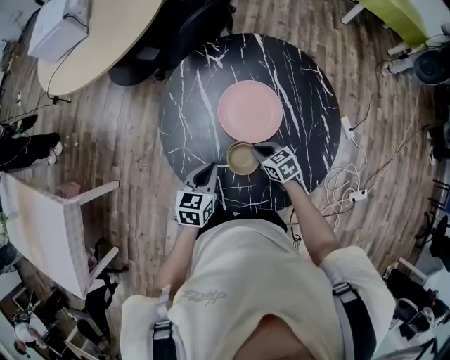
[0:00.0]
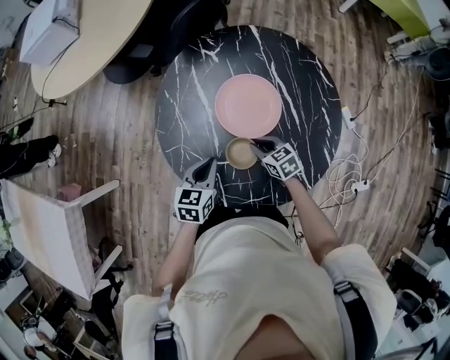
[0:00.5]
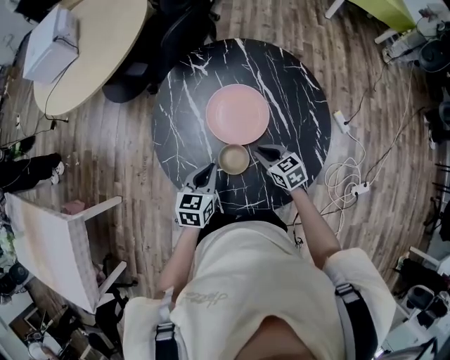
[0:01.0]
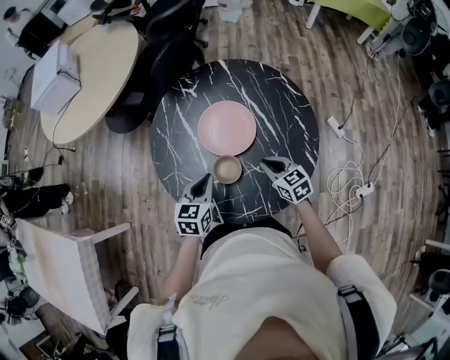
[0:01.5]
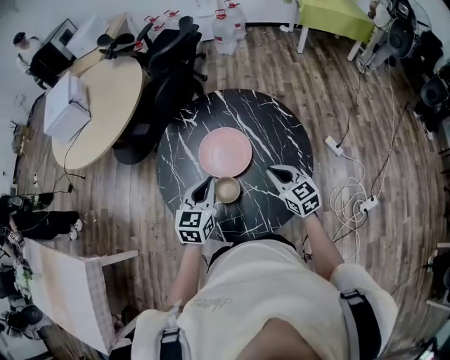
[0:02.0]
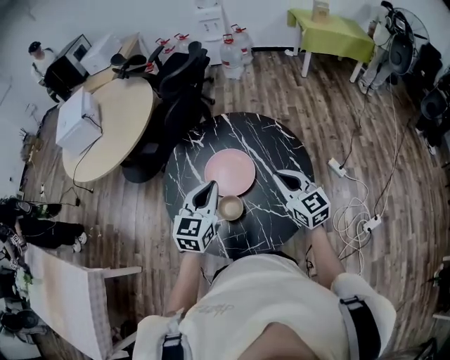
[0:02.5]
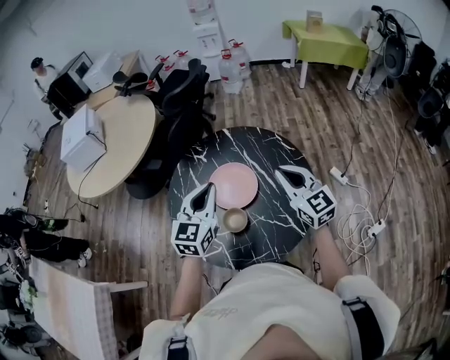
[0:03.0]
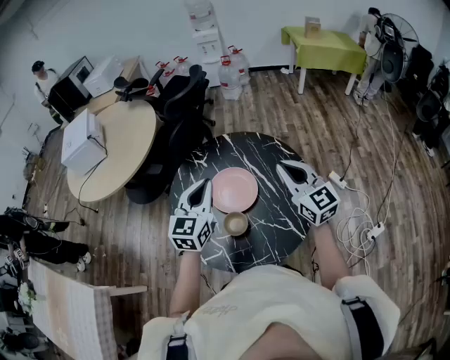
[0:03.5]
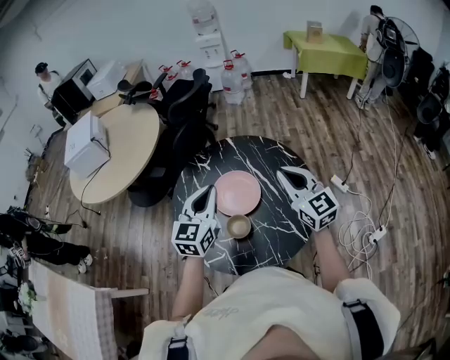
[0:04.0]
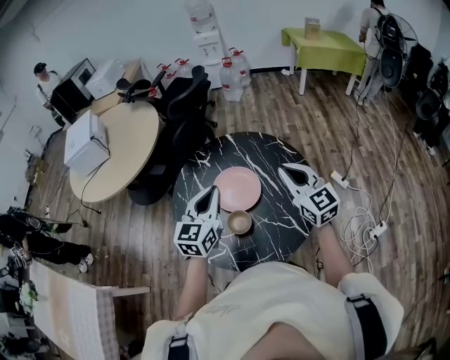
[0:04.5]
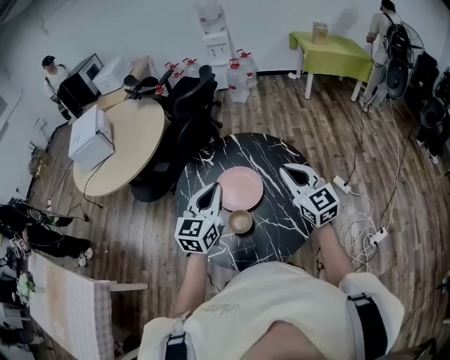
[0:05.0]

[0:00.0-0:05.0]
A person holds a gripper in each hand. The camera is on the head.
0:00.0 to 0:02.5: The two grippers go roughly 30 cm upward and to the right. The left gripper turns by some 30 degrees. The right gripper angles its fingers upward, by approximately 30 degrees.
0:02.5 to 0:05.0: The right gripper travels upward by some 10 cm; the left gripper changes place by about 5 cm.

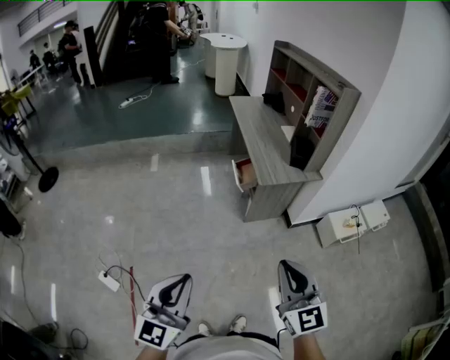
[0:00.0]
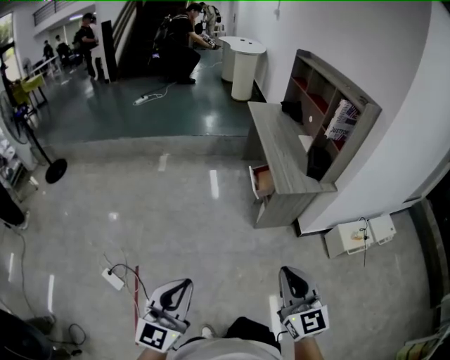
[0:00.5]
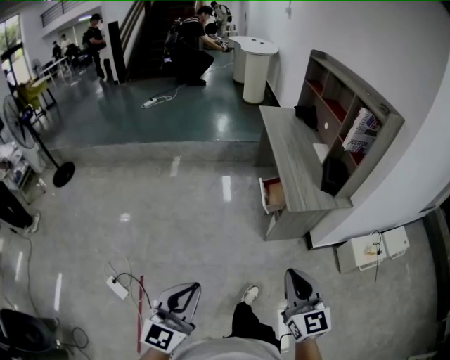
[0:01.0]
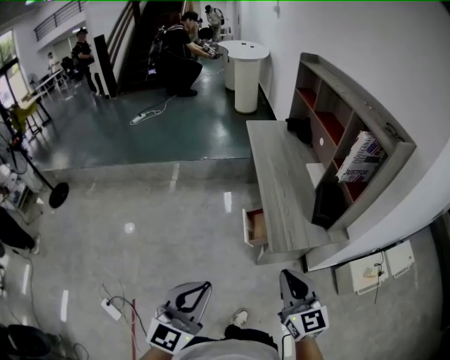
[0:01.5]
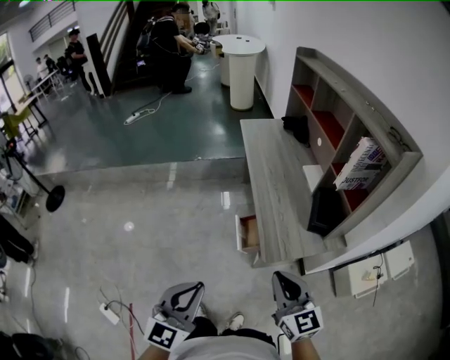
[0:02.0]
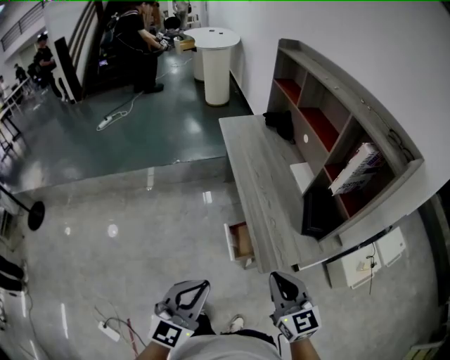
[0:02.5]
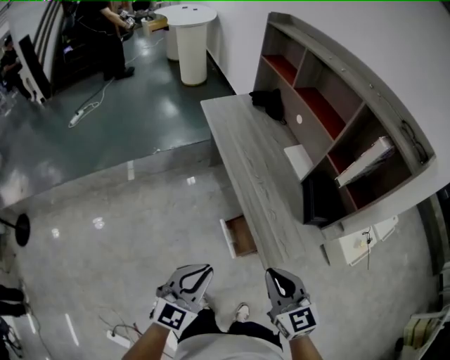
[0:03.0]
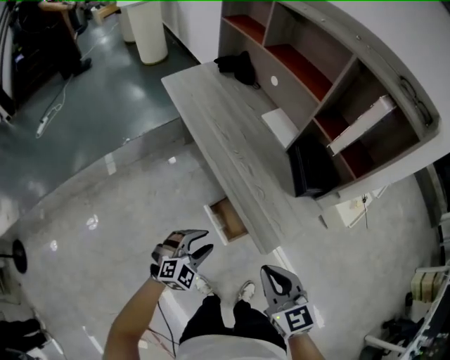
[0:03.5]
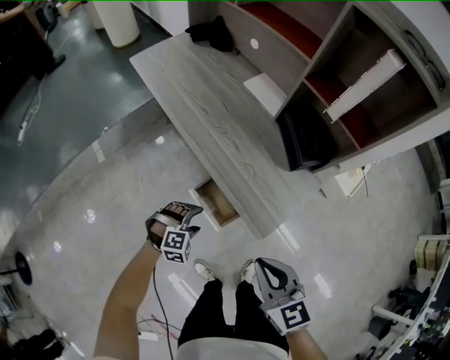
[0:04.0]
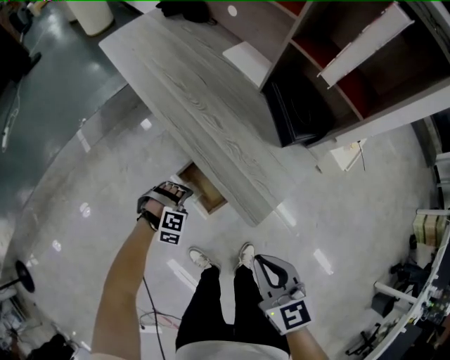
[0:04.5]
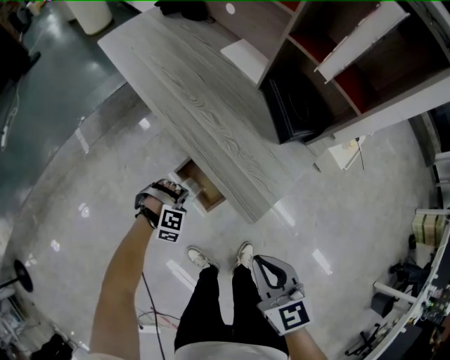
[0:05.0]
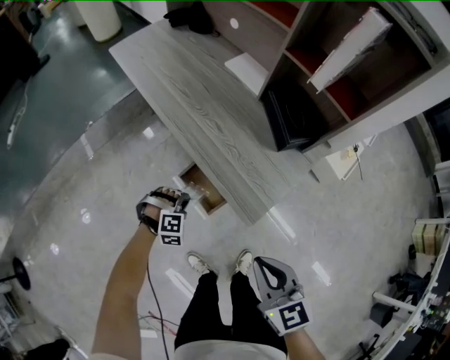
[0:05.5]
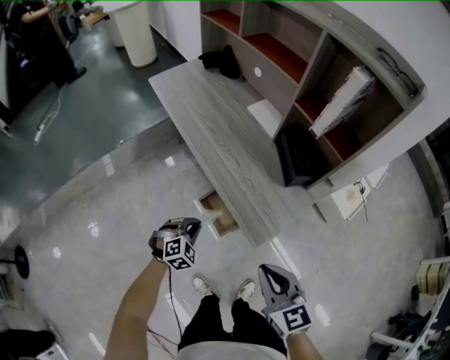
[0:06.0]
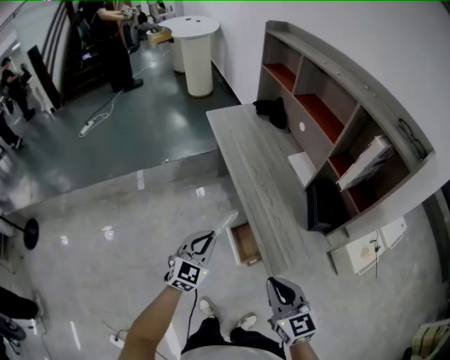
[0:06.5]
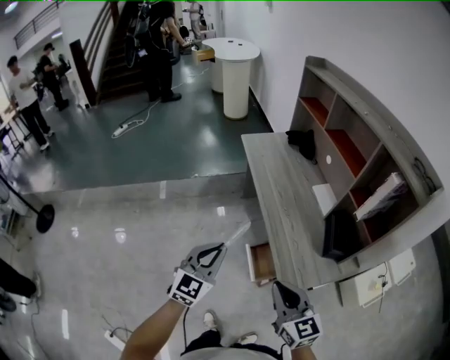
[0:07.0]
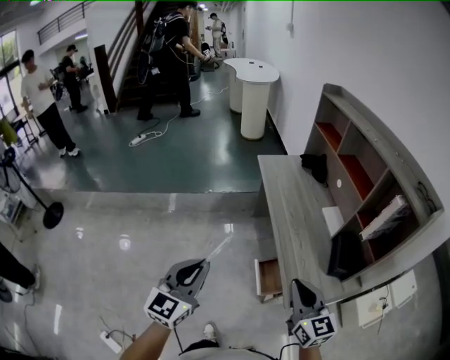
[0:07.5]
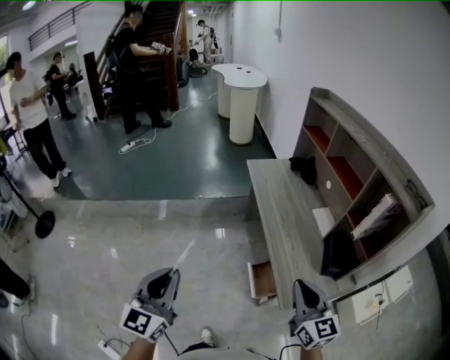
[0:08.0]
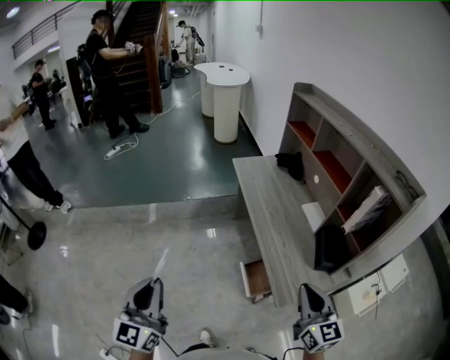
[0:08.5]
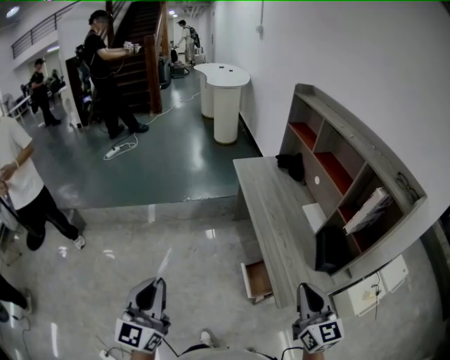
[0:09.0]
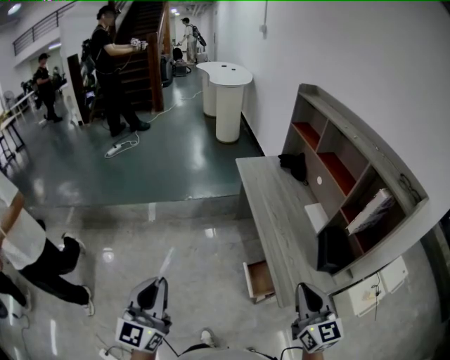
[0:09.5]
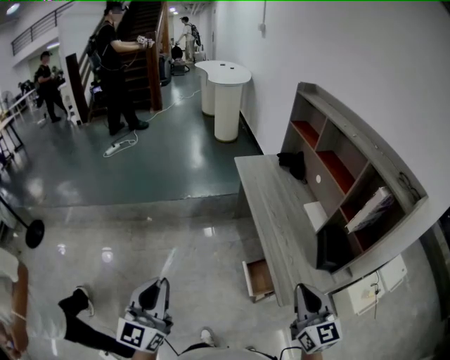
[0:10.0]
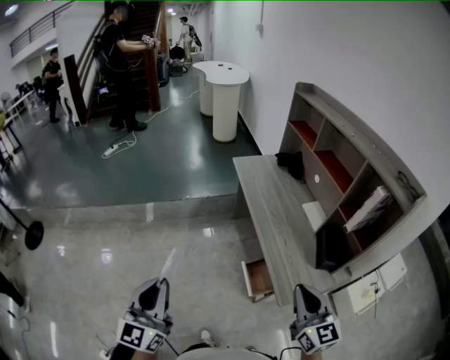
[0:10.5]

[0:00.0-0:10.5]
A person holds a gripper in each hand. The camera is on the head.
0:00.0 to 0:02.0: The two grippers travel together, forward, roughly 40 cm.
0:02.0 to 0:04.0: The right gripper travels downward by about 15 cm, and turns by some 30 degrees. Meanwhile the left gripper shifts roughly 40 cm downward, points its fingers approximately 50 degrees further downward, and opens.
0:04.0 to 0:06.5: The left gripper goes some 25 cm upward, points its fingers approximately 40 degrees further upward, and closes up; the right gripper travels upward by about 5 cm.
0:06.5 to 0:08.5: The left gripper heads to the left, upward and backward, covering some 35 cm, and changes its angle by roughly 40 degrees. The right gripper moves upward, some 10 cm.
0:08.5 to 0:10.5: The grippers move only a little.

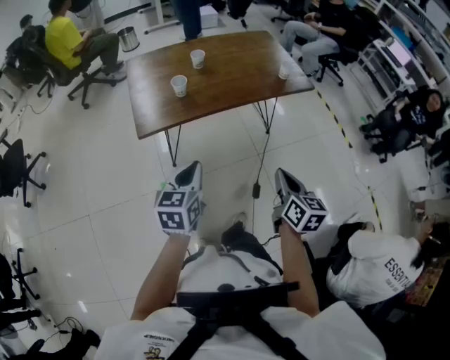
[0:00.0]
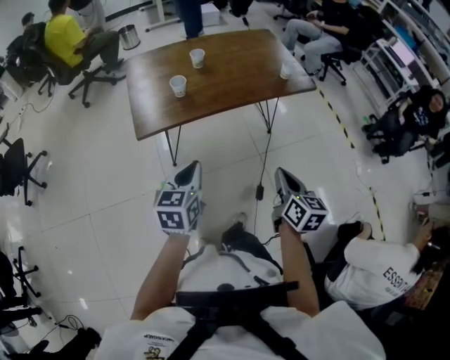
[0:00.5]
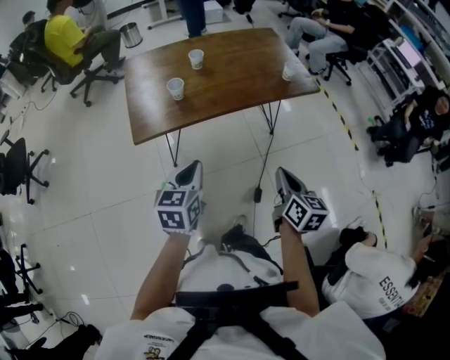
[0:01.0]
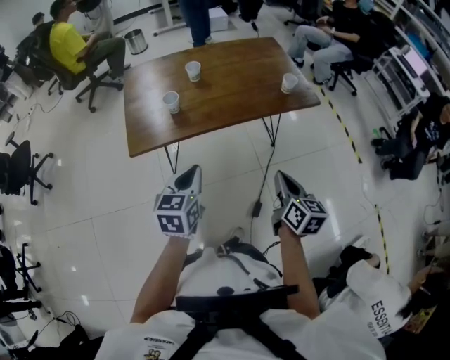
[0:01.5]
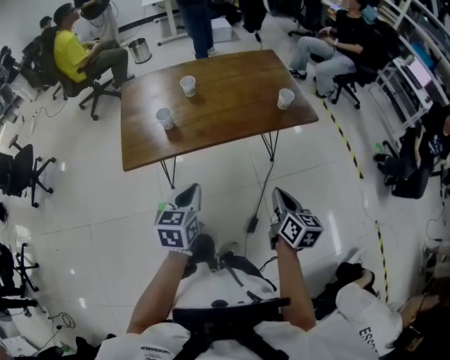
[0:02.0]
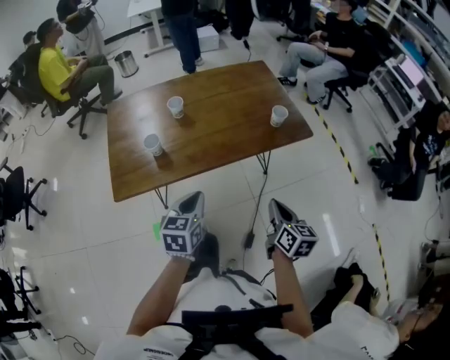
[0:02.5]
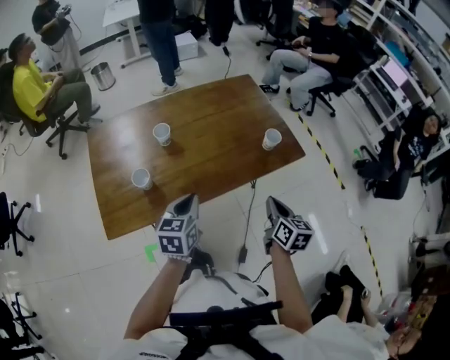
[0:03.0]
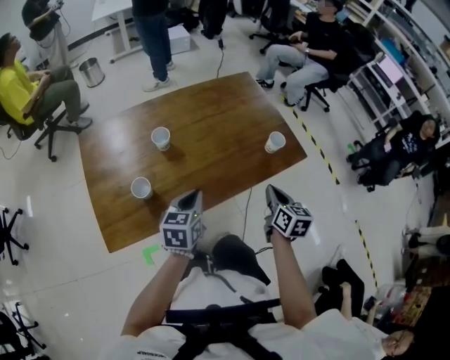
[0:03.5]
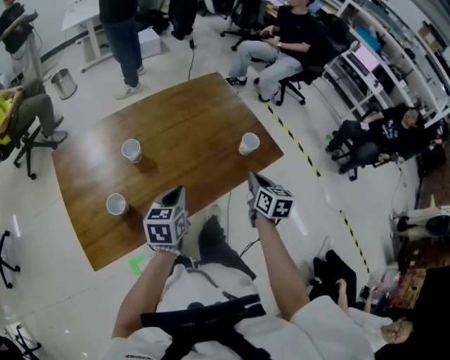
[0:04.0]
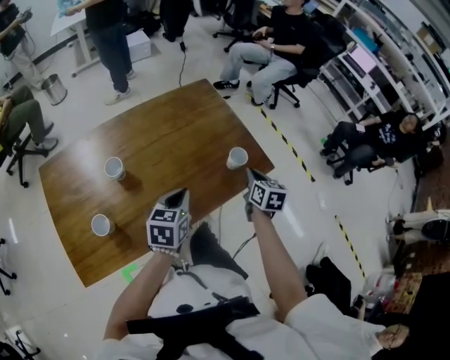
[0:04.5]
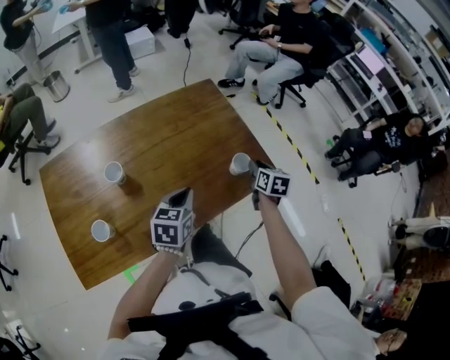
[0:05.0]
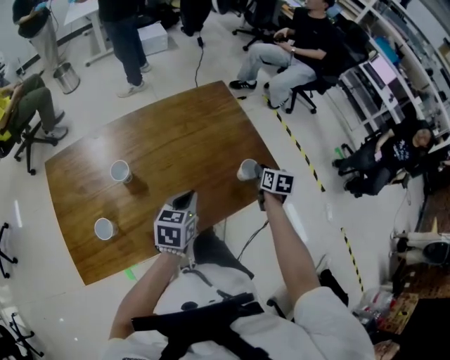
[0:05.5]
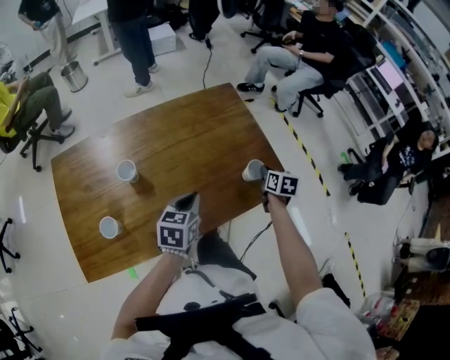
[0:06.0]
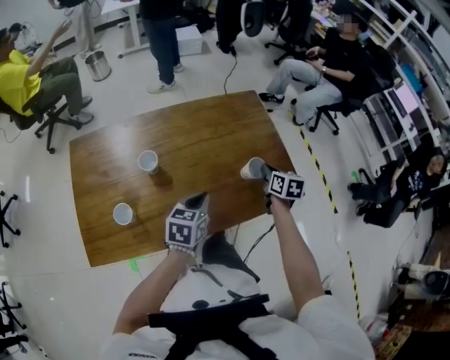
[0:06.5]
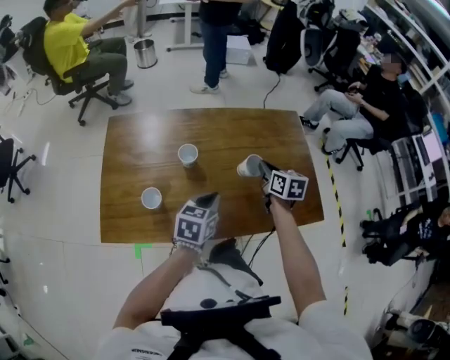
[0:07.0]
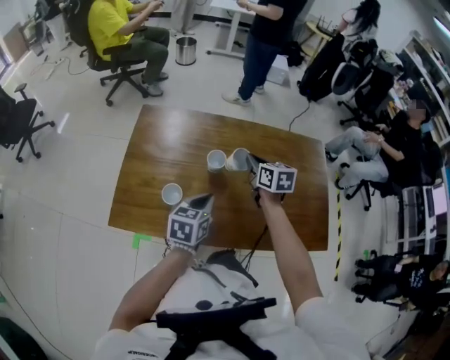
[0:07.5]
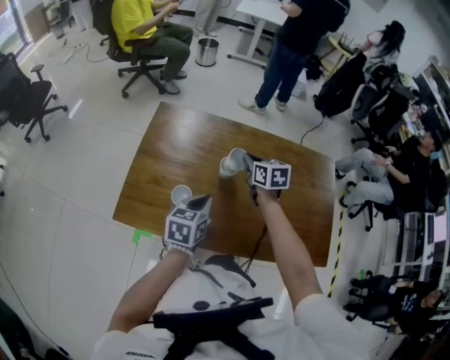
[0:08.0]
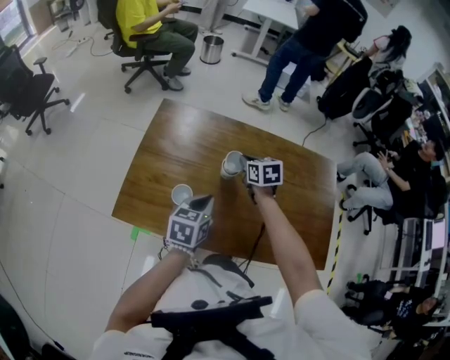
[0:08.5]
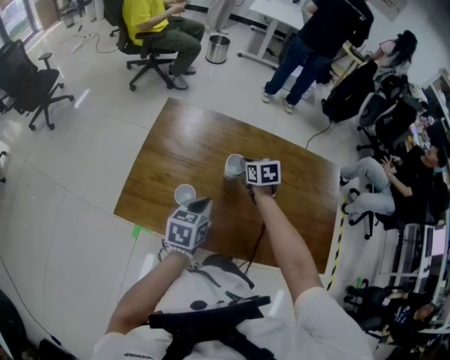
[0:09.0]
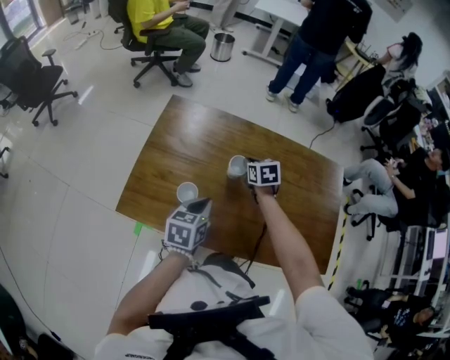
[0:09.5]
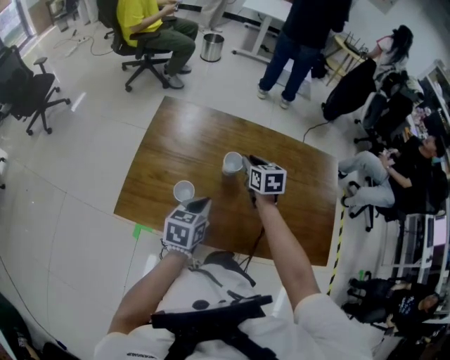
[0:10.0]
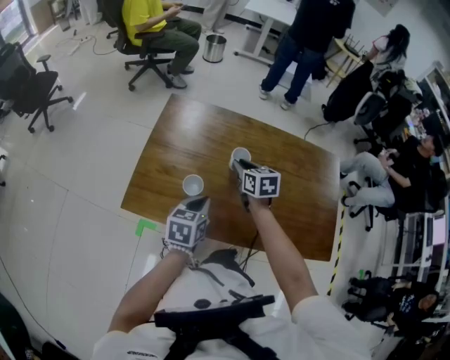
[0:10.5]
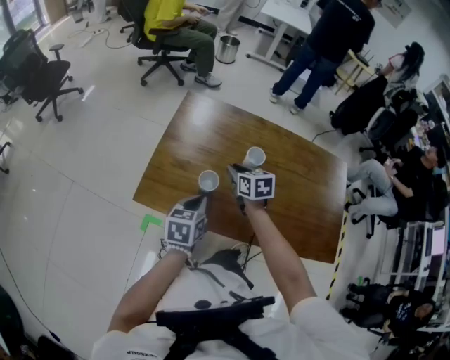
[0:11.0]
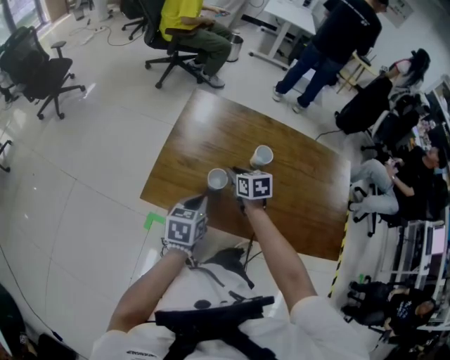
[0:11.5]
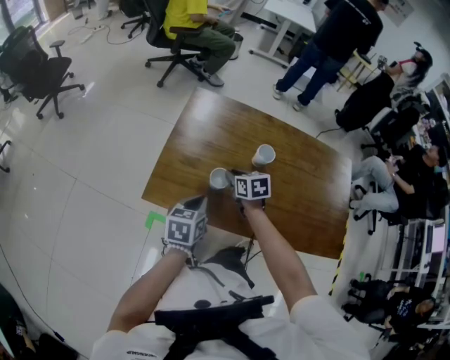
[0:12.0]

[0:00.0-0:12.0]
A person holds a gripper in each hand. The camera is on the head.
0:00.0 to 0:02.0: The two grippers go approximately 15 cm forward and to the right.
0:02.0 to 0:04.0: The grippers both shift forward by roughly 35 cm.
0:04.0 to 0:06.0: The left gripper shifts about 10 cm forward, while the right gripper heads forward and downward, covering some 20 cm, and opens, then closes once more.
0:06.0 to 0:08.0: The left gripper ends up roughly 25 cm from where it was, and changes its angle by approximately 30 degrees. The right gripper changes place by approximately 50 cm, and swivels about 50 degrees.
0:08.0 to 0:10.0: The right gripper opens its fingers.
0:10.0 to 0:12.0: Both grippers travel together to the left and backward, about 20 cm.
